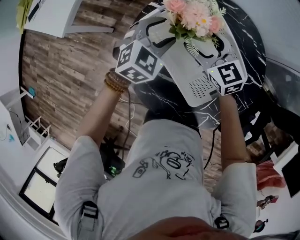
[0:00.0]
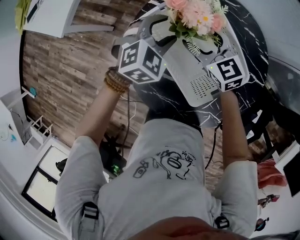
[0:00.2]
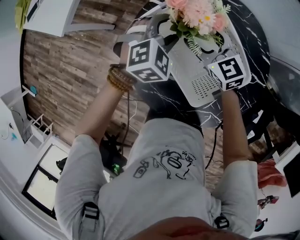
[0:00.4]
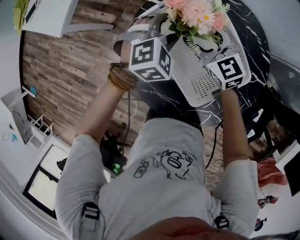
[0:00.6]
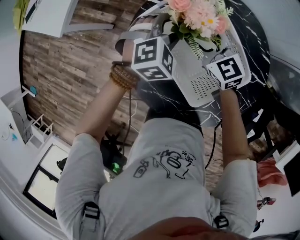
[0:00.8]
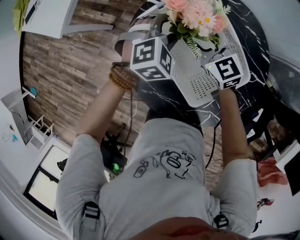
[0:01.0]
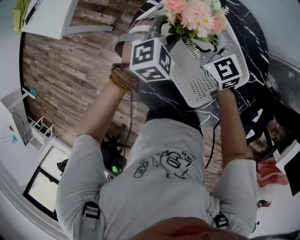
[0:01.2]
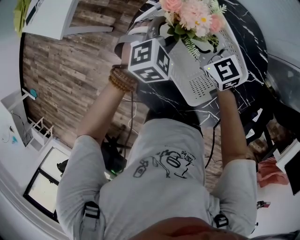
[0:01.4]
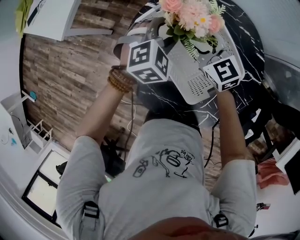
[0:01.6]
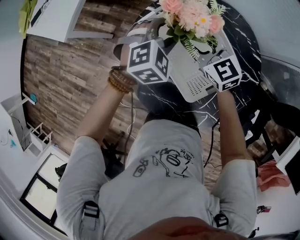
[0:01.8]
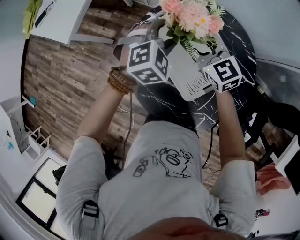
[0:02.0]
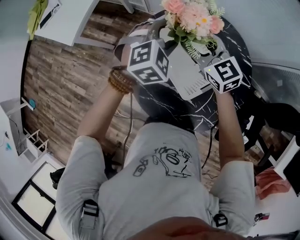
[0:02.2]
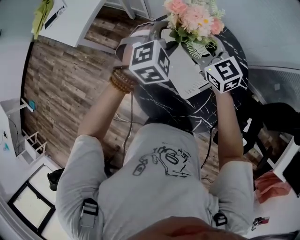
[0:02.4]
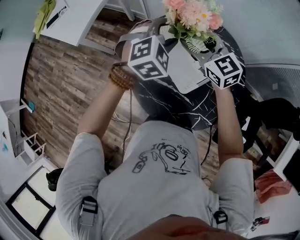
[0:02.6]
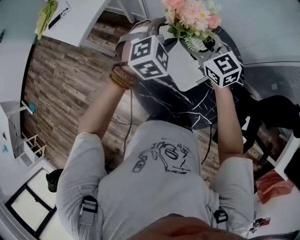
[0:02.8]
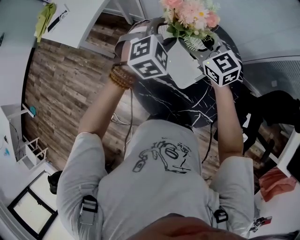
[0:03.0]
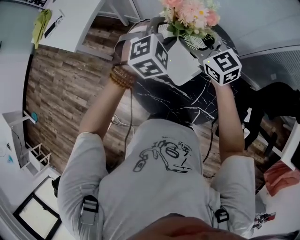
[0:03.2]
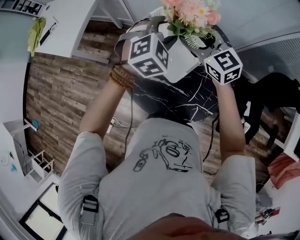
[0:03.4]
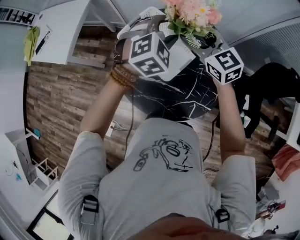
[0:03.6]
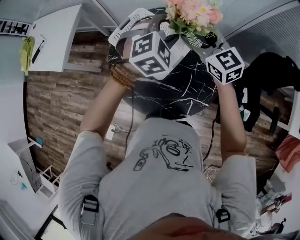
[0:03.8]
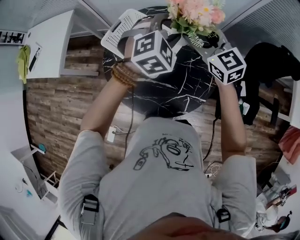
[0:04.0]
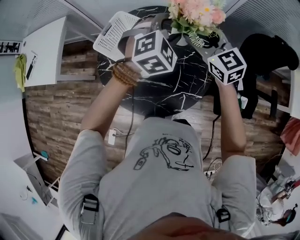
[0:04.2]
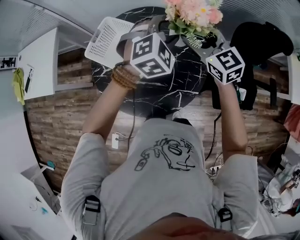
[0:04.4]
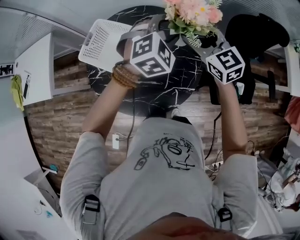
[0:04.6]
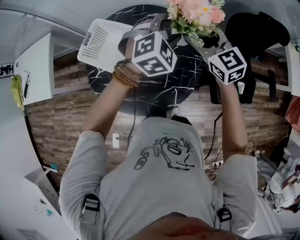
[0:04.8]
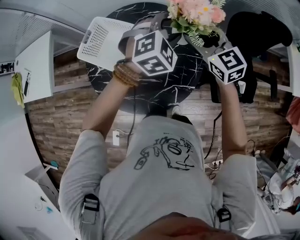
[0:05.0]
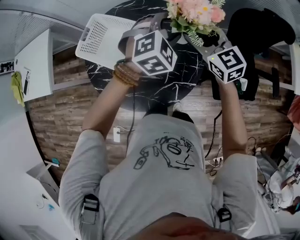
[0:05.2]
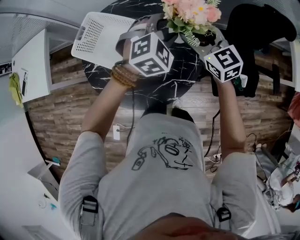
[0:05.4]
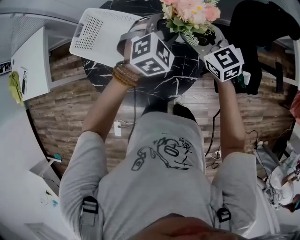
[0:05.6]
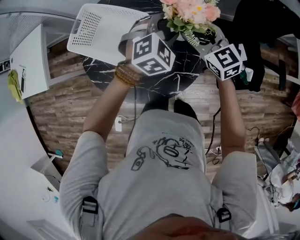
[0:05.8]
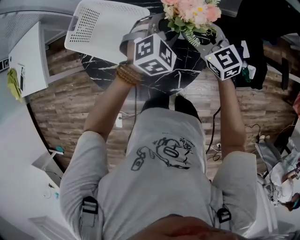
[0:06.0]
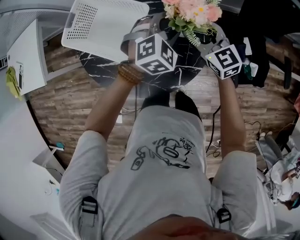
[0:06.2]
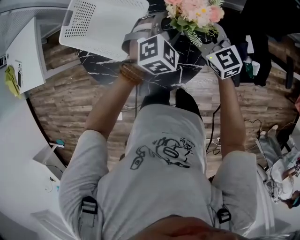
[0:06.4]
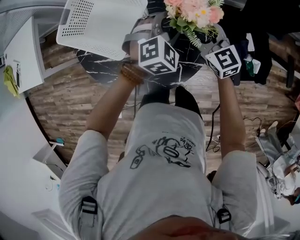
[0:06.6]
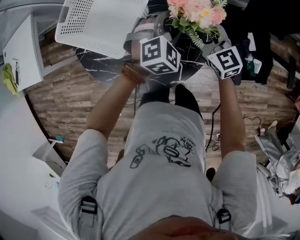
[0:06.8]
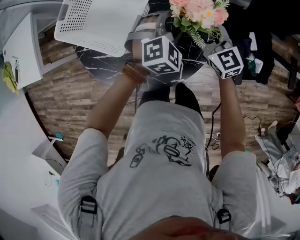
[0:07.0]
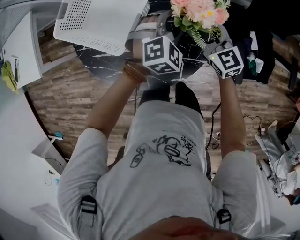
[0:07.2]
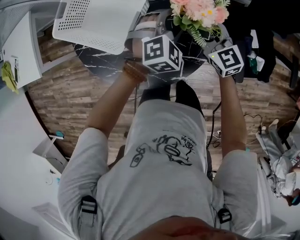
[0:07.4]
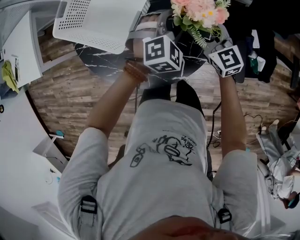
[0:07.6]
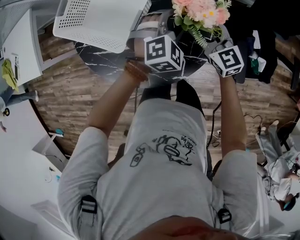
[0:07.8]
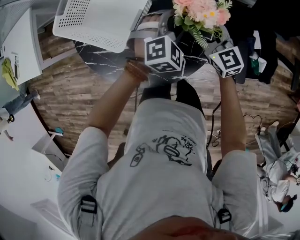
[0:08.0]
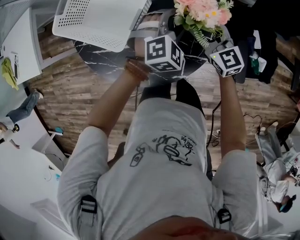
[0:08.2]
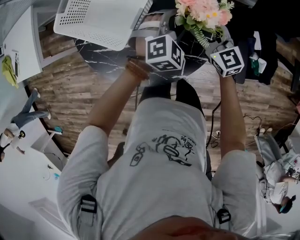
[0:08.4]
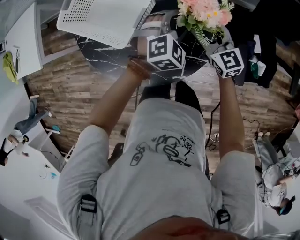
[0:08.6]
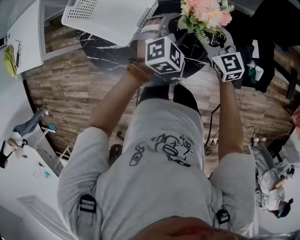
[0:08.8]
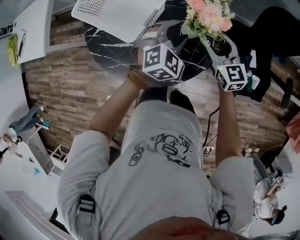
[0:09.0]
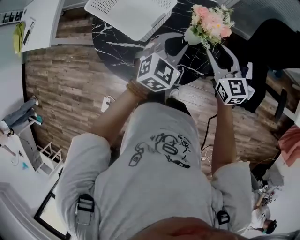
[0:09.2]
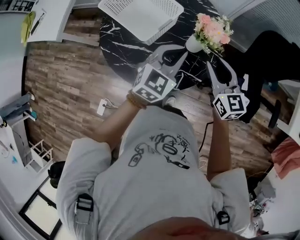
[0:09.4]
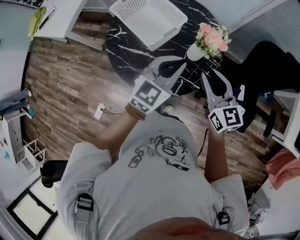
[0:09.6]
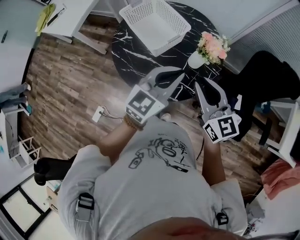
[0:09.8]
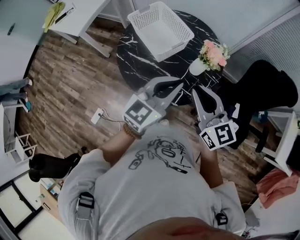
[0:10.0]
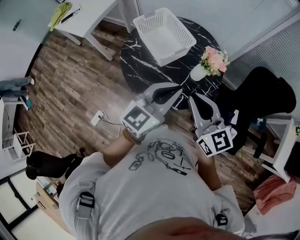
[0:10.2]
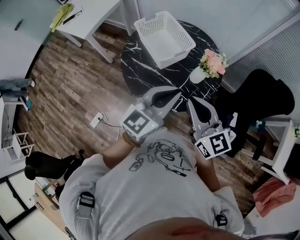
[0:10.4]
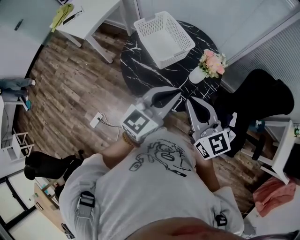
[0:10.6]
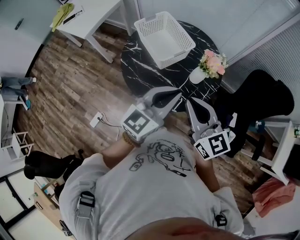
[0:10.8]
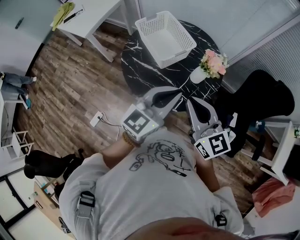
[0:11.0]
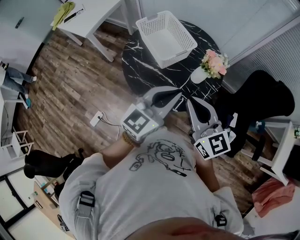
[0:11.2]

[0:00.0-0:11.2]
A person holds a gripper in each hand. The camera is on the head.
0:00.0 to 0:01.6: The grippers stay close to where they were, moving slightly.
0:01.6 to 0:03.2: Both grippers move upward and backward, roughly 20 cm.
0:03.2 to 0:04.8: The left gripper moves roughly 30 cm, and rotates about 30 degrees. The right gripper moves about 30 cm, and rotates about 30 degrees.
0:04.8 to 0:06.4: The two grippers go about 20 cm downward.
0:06.4 to 0:08.0: The two grippers go about 5 cm downward.
0:08.0 to 0:09.6: Both grippers travel together upward and backward, about 30 cm. The left gripper tilts its fingers some 30 degrees upward, and closes its fingers. The right gripper closes up.
0:09.6 to 0:11.2: The left gripper is displaced backward and upward by some 15 cm. Meanwhile the right gripper shifts roughly 20 cm upward, backward and to the left.

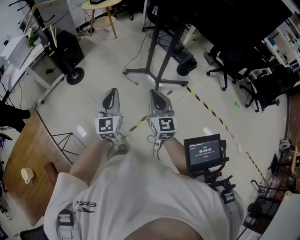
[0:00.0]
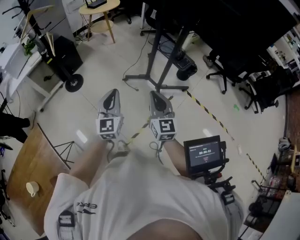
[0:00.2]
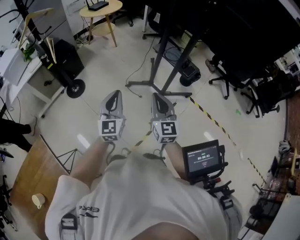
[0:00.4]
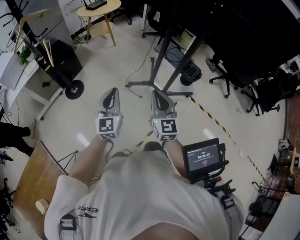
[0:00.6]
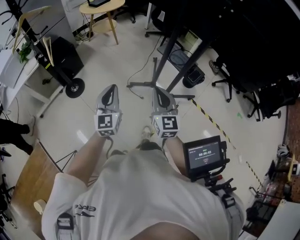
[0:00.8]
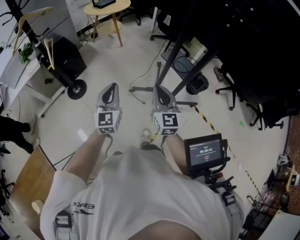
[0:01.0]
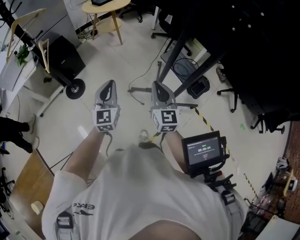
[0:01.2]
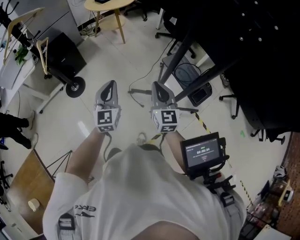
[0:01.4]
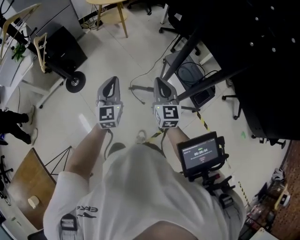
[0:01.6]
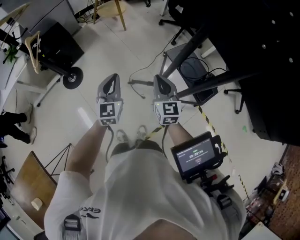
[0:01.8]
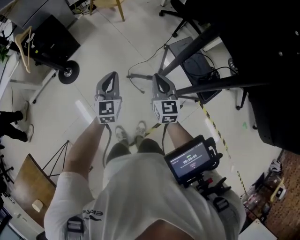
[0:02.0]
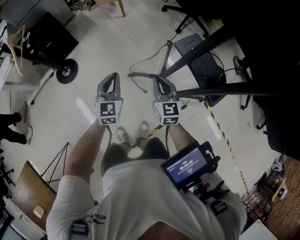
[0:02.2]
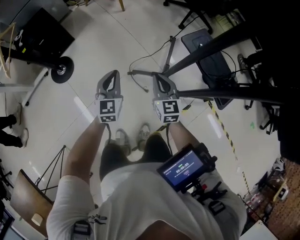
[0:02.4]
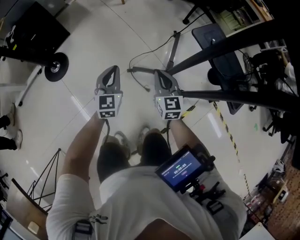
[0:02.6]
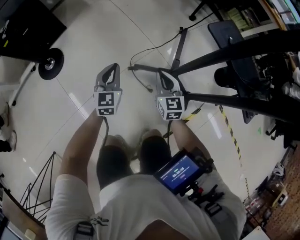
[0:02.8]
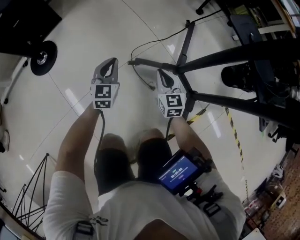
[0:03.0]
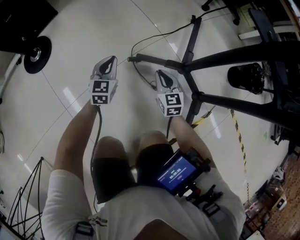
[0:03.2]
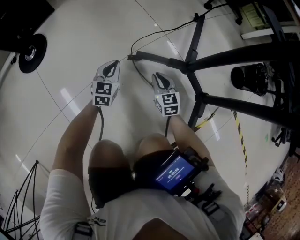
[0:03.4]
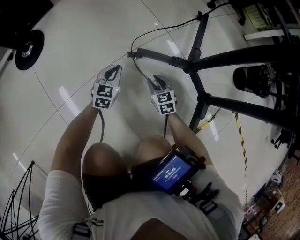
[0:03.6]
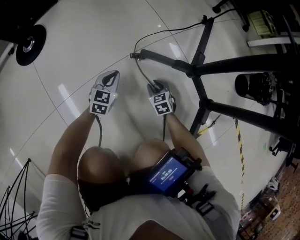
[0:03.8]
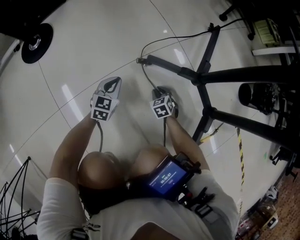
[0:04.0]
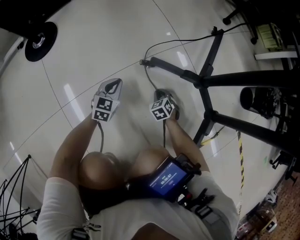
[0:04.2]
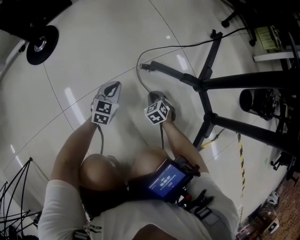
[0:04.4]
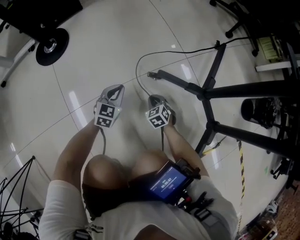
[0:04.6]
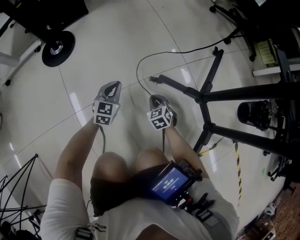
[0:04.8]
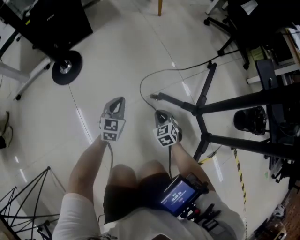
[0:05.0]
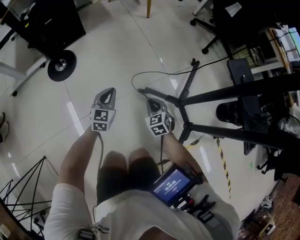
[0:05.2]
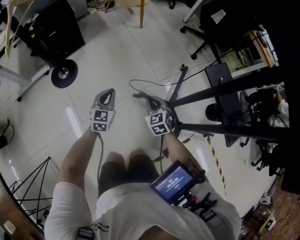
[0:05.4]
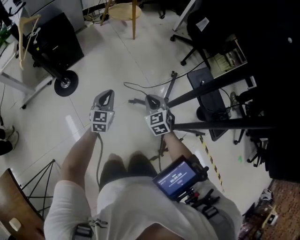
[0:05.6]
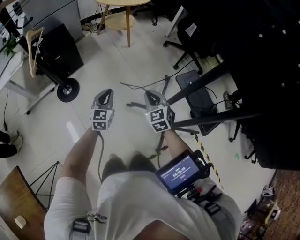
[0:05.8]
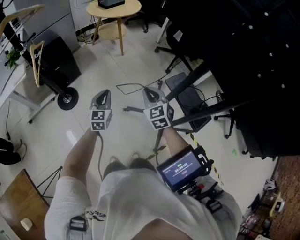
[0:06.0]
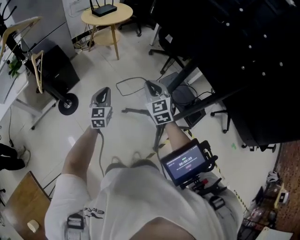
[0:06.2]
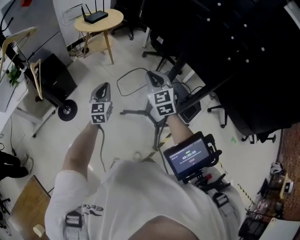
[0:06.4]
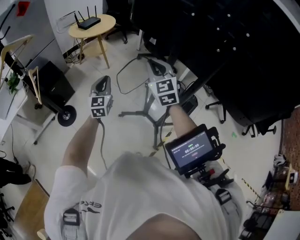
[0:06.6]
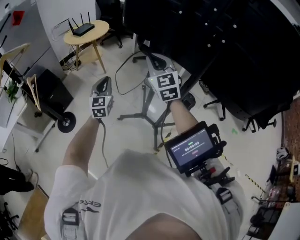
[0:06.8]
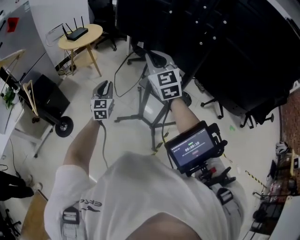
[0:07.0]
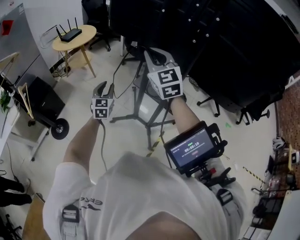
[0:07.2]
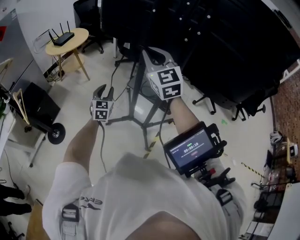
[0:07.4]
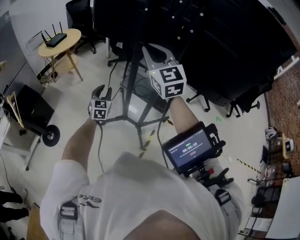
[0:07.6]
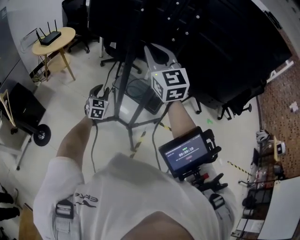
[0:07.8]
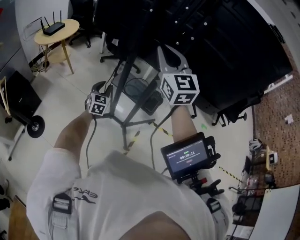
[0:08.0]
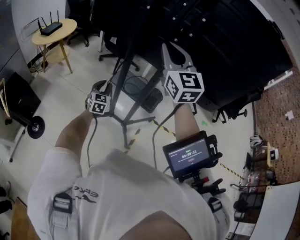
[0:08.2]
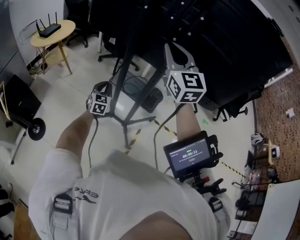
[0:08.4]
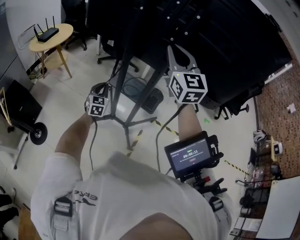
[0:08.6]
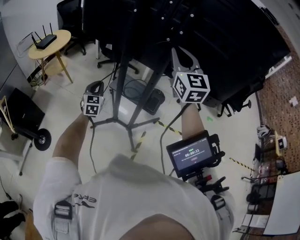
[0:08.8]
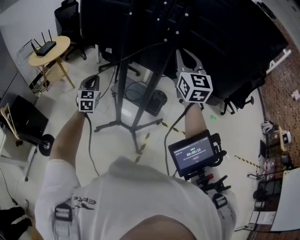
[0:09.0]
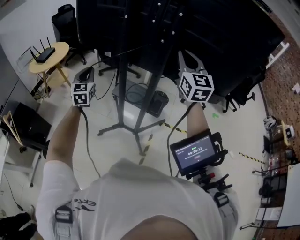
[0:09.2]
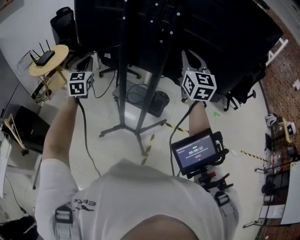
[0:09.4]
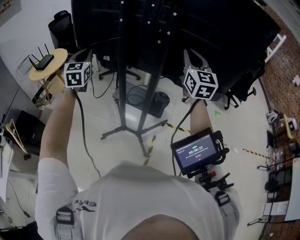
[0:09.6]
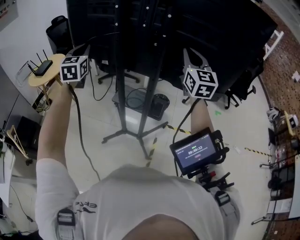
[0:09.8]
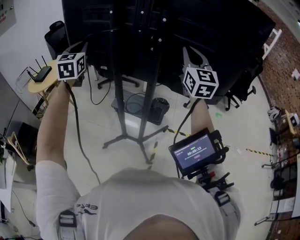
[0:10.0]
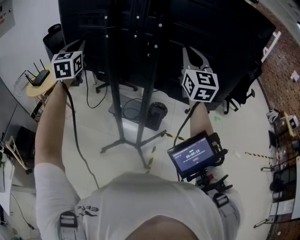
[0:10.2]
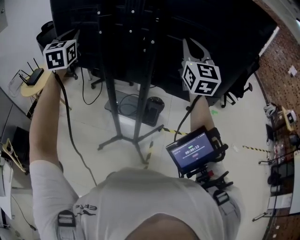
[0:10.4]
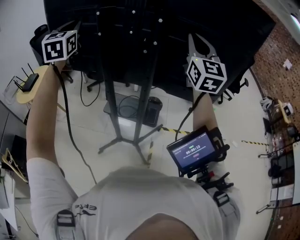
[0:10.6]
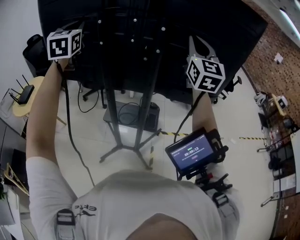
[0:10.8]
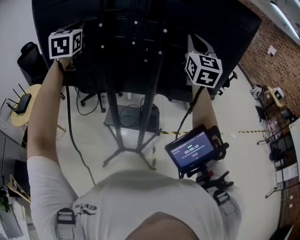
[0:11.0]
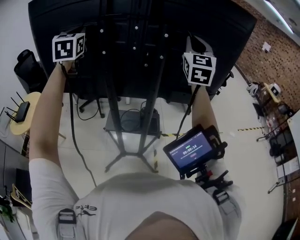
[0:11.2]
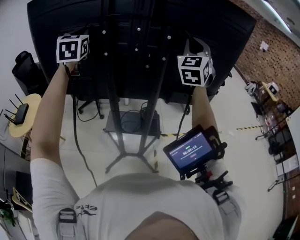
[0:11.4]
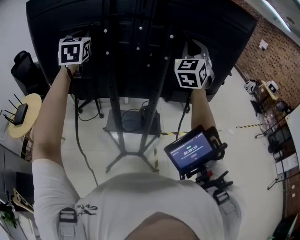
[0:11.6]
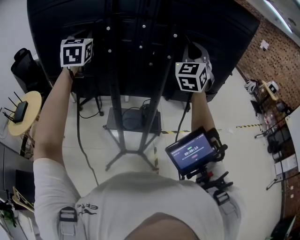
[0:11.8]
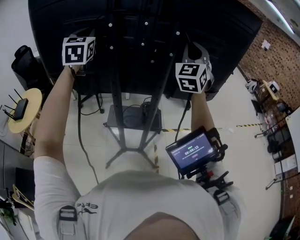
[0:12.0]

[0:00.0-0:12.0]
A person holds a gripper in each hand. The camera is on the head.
0:00.0 to 0:01.6: The pair of grippers is taken forward, approximately 50 cm.
0:01.6 to 0:03.0: Both grippers travel together downward, some 60 cm.
0:03.0 to 0:04.4: Both grippers travel together downward, approximately 30 cm. The right gripper tips its fingers downward by some 30 degrees, and opens, then closes once more.
0:04.4 to 0:06.0: Both grippers travel together upward, some 80 cm. The left gripper changes its angle by about 20 degrees. The right gripper tips its fingers upward by about 30 degrees.
0:06.0 to 0:07.6: The right gripper is displaced upward and to the right by some 40 cm, and swivels about 30 degrees. The left gripper is displaced to the right and upward by approximately 25 cm, swivels approximately 30 degrees, and opens up.
0:07.6 to 0:09.0: The left gripper goes approximately 10 cm upward and forward, and closes up. Meanwhile the right gripper travels to the right by some 15 cm.
0:09.0 to 0:10.4: The left gripper shifts approximately 35 cm upward. The right gripper travels upward and to the right by about 10 cm.
0:10.4 to 0:12.0: The right gripper moves forward, some 5 cm, and rotates about 50 degrees. The left gripper shifts about 15 cm forward.
